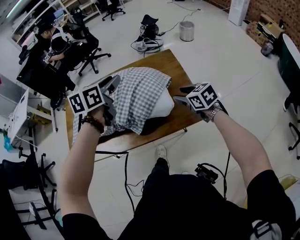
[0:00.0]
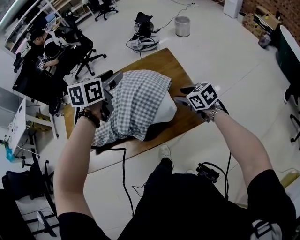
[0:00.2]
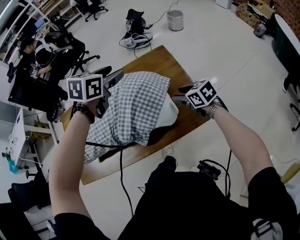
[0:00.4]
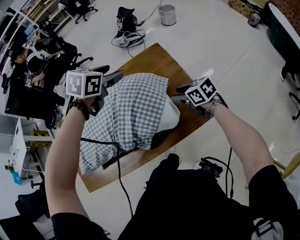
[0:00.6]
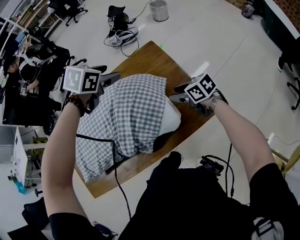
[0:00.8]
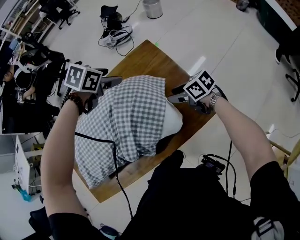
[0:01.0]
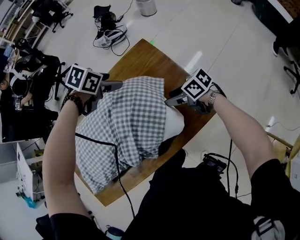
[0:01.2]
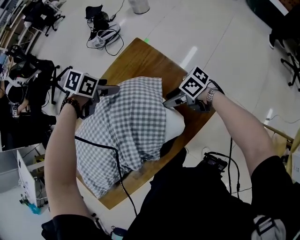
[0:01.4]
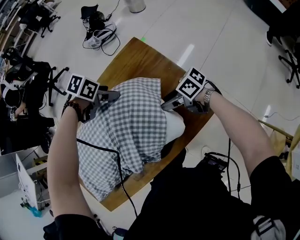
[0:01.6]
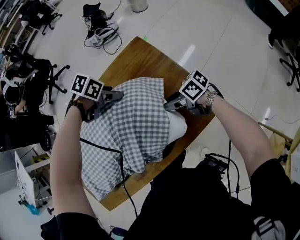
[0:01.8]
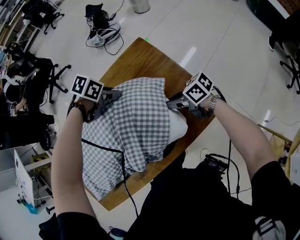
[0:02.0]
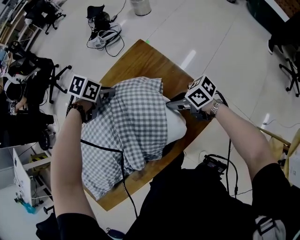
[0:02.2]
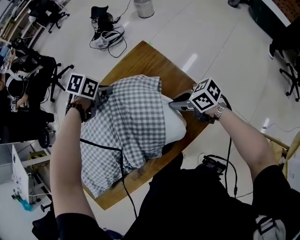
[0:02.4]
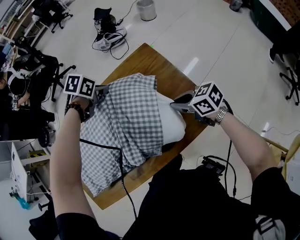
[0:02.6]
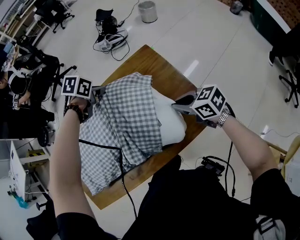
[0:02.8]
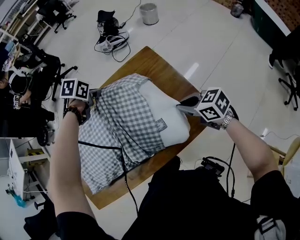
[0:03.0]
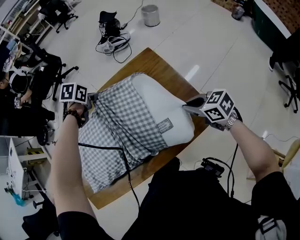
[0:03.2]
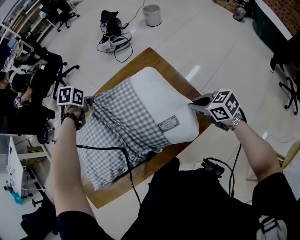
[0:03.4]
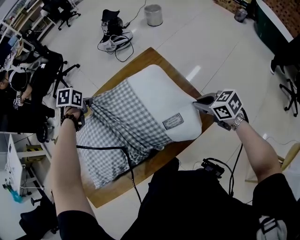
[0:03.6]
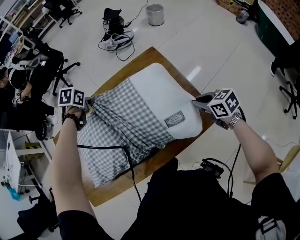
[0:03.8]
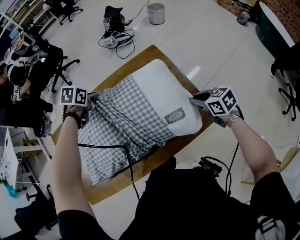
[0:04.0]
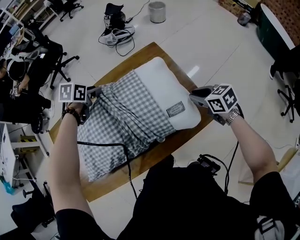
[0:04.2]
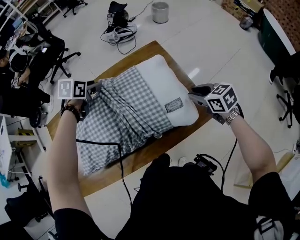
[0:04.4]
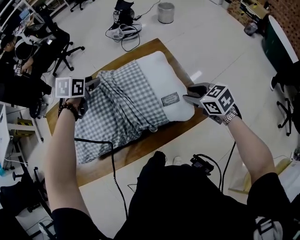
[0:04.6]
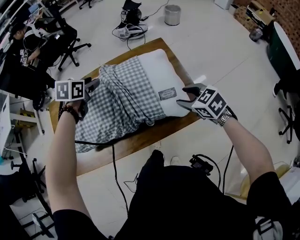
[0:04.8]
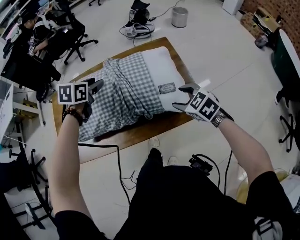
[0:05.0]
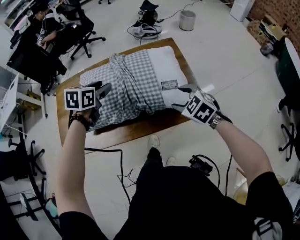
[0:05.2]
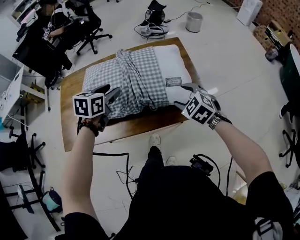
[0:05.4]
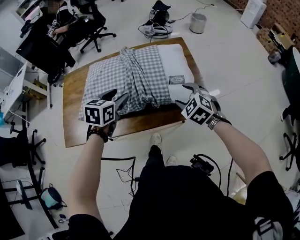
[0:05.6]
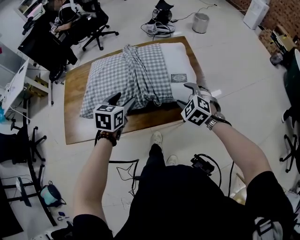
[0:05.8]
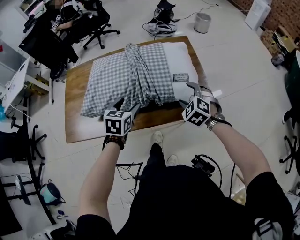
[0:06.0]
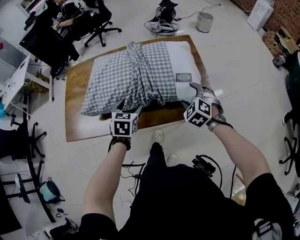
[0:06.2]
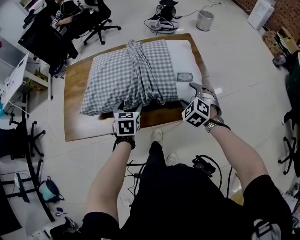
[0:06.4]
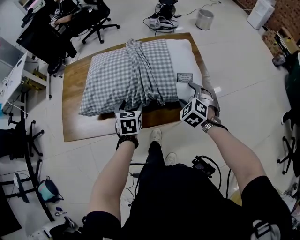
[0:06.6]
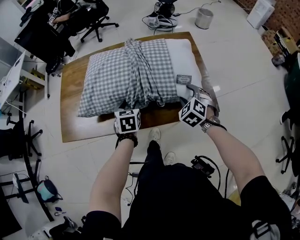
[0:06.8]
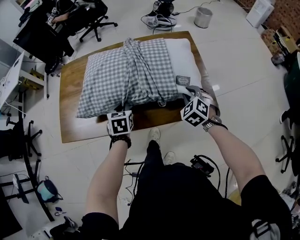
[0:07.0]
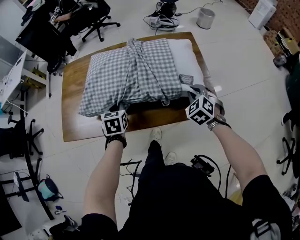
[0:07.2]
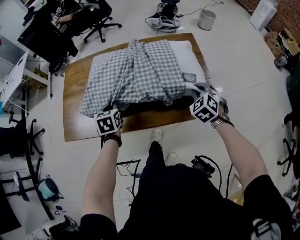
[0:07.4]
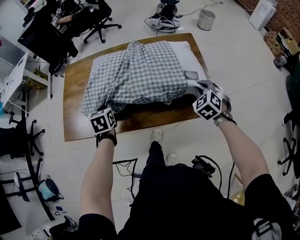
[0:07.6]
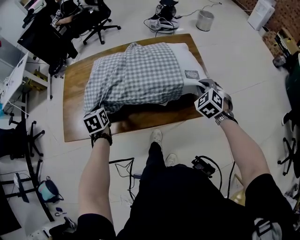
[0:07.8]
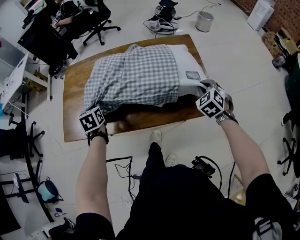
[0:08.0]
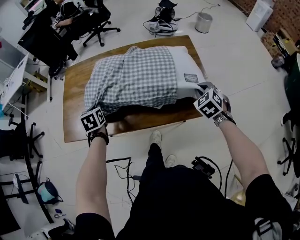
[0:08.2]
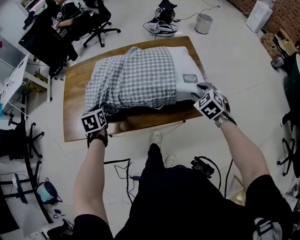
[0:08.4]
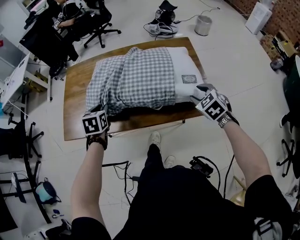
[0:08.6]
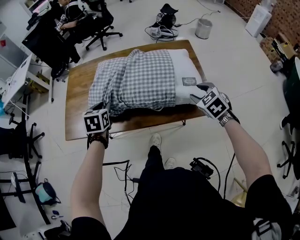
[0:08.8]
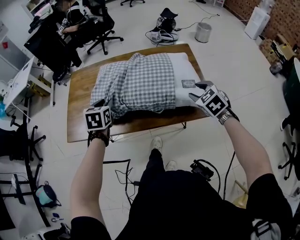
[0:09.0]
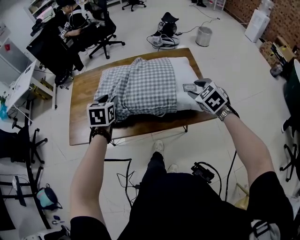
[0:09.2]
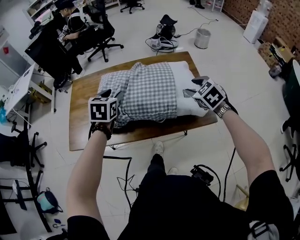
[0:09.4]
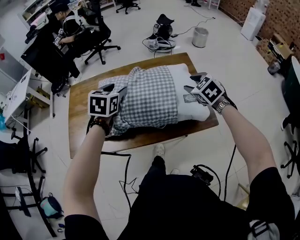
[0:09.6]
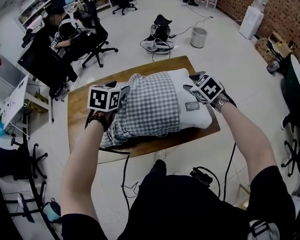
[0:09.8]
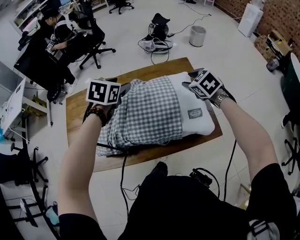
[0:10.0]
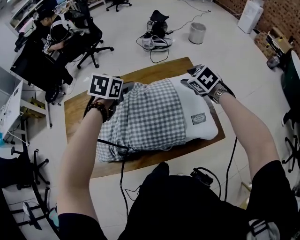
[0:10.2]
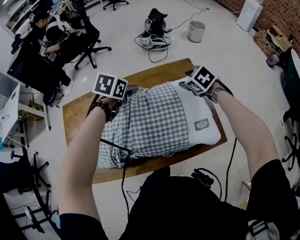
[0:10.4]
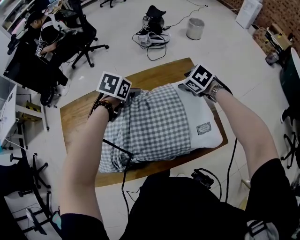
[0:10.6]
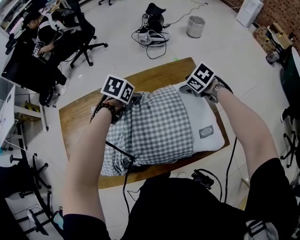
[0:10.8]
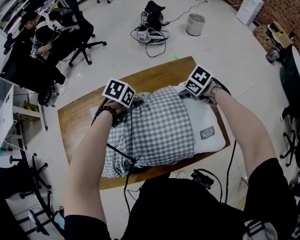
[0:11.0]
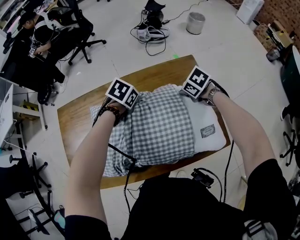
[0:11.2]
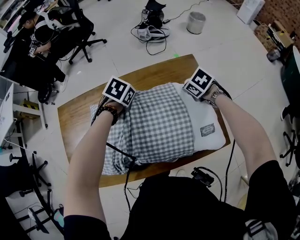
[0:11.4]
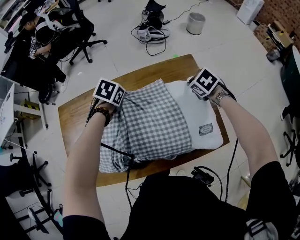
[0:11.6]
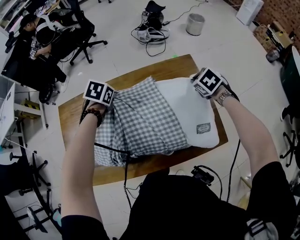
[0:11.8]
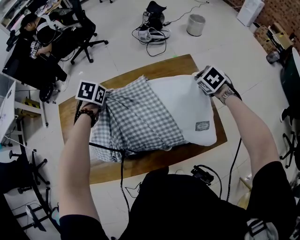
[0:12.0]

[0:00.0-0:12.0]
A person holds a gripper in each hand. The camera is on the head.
0:00.0 to 0:01.6: The right gripper shifts by some 25 cm, and rotates about 50 degrees. The left gripper ends up approximately 40 cm from where it was, angles its fingers downward, by approximately 40 degrees, and opens.
0:01.6 to 0:03.0: The right gripper is displaced upward by approximately 10 cm, changes its angle by approximately 30 degrees, and closes up, while the left gripper shifts by approximately 15 cm, swivels approximately 30 degrees, and closes.
0:03.0 to 0:04.4: The left gripper shifts by some 10 cm, and opens.
0:04.4 to 0:06.0: The right gripper travels backward, to the left and downward by about 15 cm, rolls counterclockwise, seen from behind, by about 50 degrees, and opens up, while the left gripper is displaced backward by approximately 30 cm, and turns by approximately 30 degrees.
0:06.0 to 0:07.6: The left gripper is displaced to the left by about 15 cm, rotates some 30 degrees, and closes up. Meanwhile the right gripper goes about 5 cm forward, and closes up.
0:07.6 to 0:09.0: The left gripper shifts approximately 10 cm backward and upward, and opens its fingers. Meanwhile the right gripper travels backward by about 10 cm, and opens up.
0:09.0 to 0:10.4: The right gripper moves forward, some 30 cm; the left gripper shifts about 30 cm forward and to the right, swivels roughly 40 degrees, and opens.
0:10.4 to 0:12.0: The left gripper ends up approximately 15 cm from where it was, and closes. Meanwhile the right gripper reaches roughly 10 cm downward, then returns, and closes.

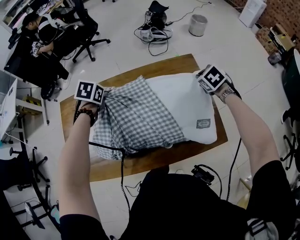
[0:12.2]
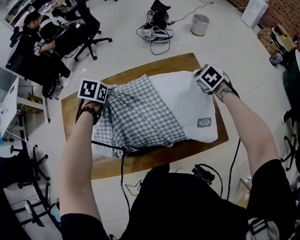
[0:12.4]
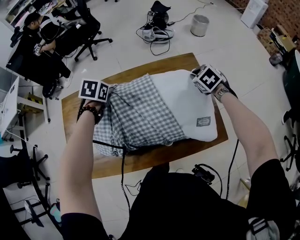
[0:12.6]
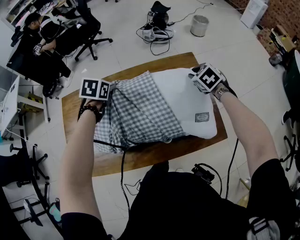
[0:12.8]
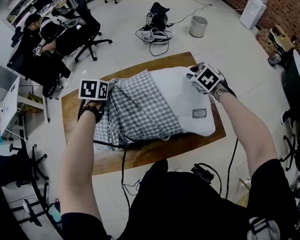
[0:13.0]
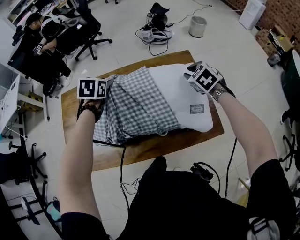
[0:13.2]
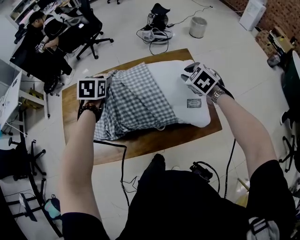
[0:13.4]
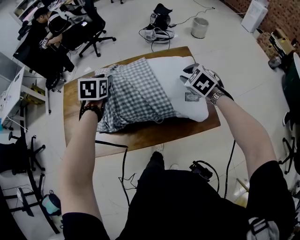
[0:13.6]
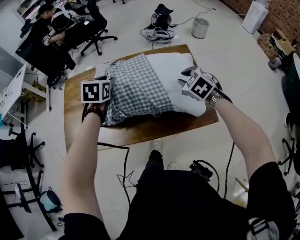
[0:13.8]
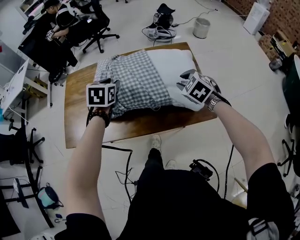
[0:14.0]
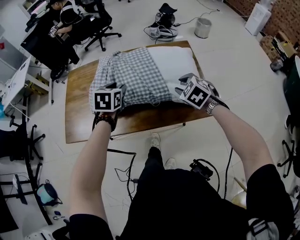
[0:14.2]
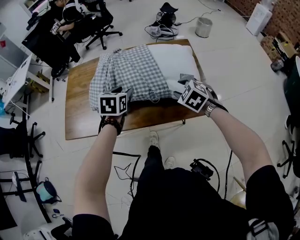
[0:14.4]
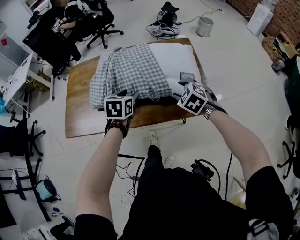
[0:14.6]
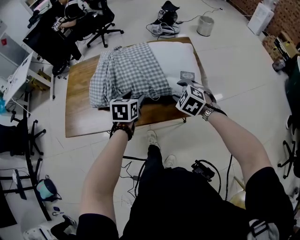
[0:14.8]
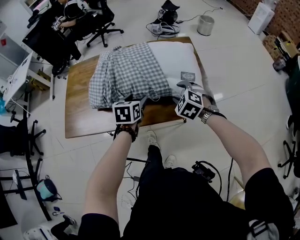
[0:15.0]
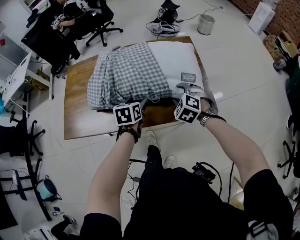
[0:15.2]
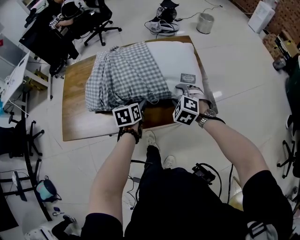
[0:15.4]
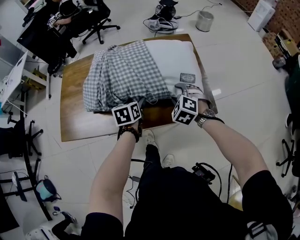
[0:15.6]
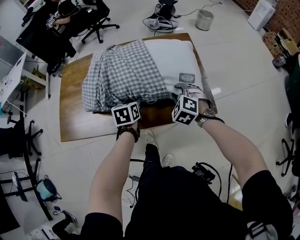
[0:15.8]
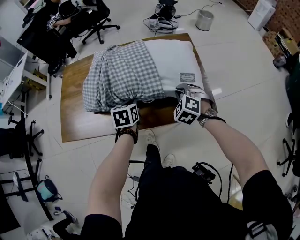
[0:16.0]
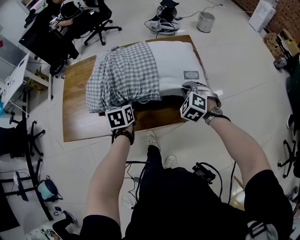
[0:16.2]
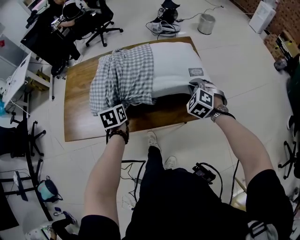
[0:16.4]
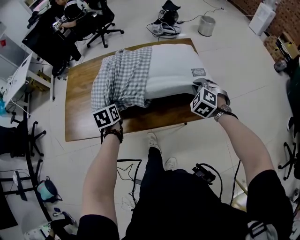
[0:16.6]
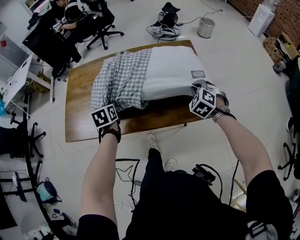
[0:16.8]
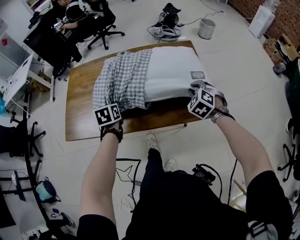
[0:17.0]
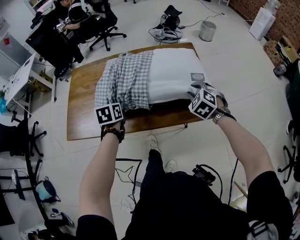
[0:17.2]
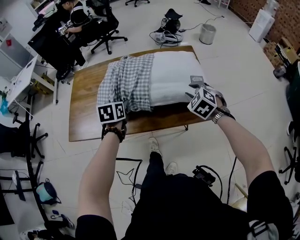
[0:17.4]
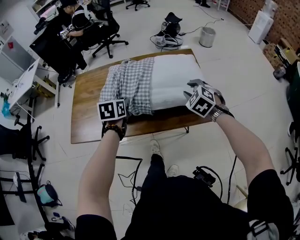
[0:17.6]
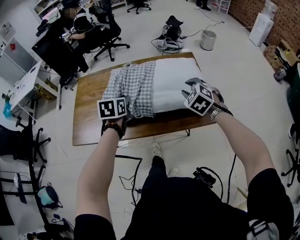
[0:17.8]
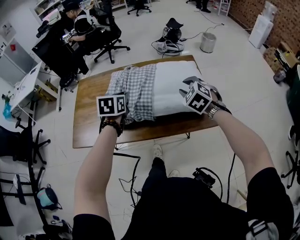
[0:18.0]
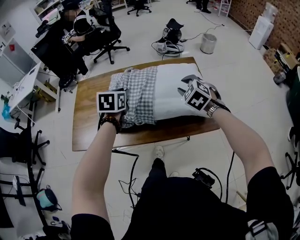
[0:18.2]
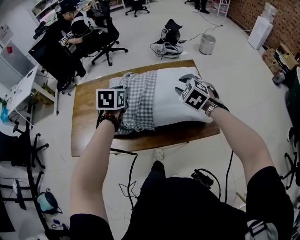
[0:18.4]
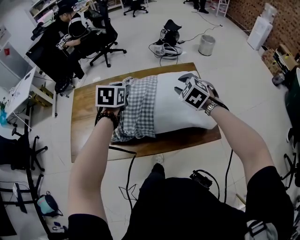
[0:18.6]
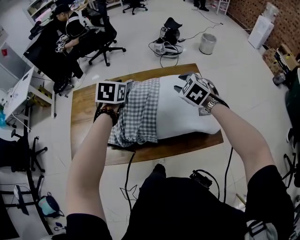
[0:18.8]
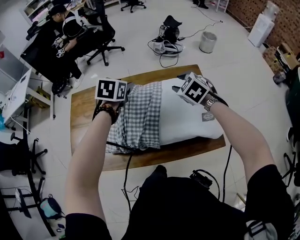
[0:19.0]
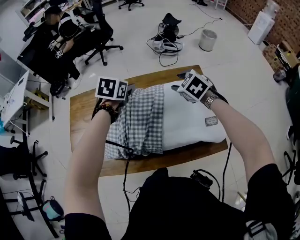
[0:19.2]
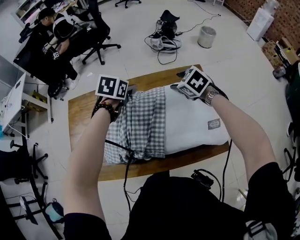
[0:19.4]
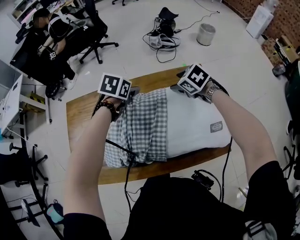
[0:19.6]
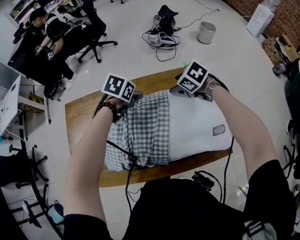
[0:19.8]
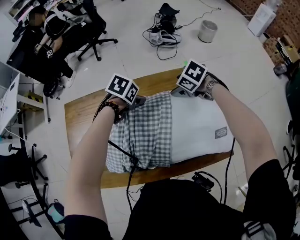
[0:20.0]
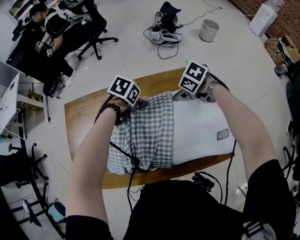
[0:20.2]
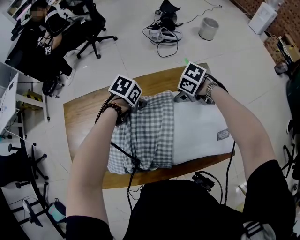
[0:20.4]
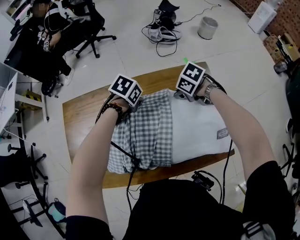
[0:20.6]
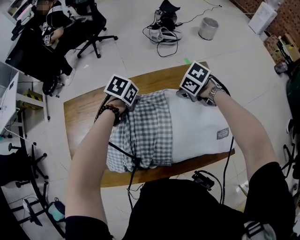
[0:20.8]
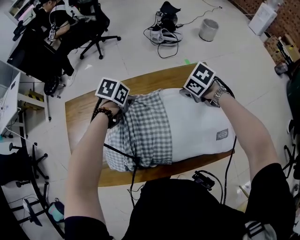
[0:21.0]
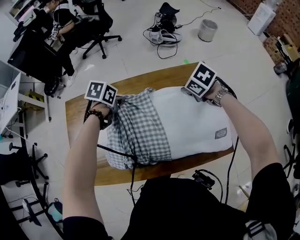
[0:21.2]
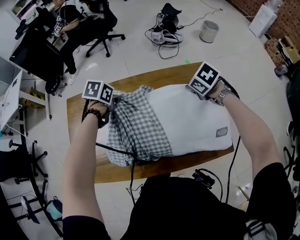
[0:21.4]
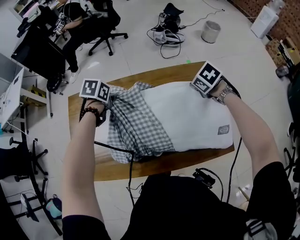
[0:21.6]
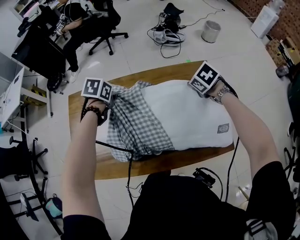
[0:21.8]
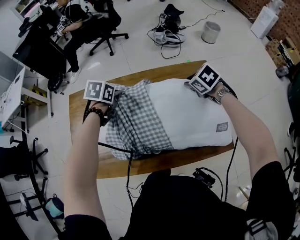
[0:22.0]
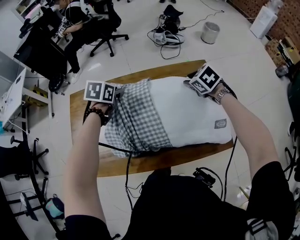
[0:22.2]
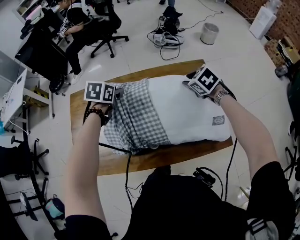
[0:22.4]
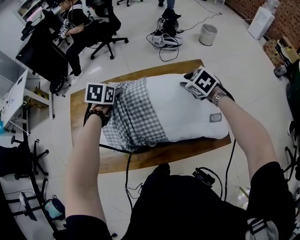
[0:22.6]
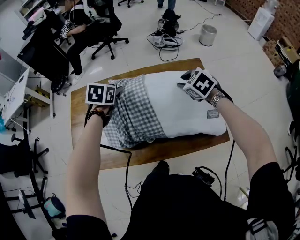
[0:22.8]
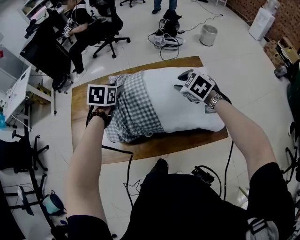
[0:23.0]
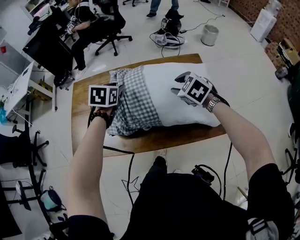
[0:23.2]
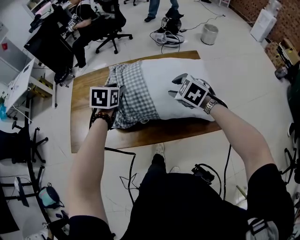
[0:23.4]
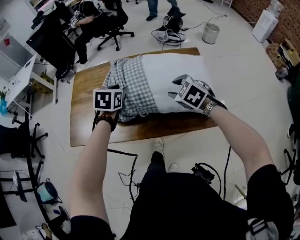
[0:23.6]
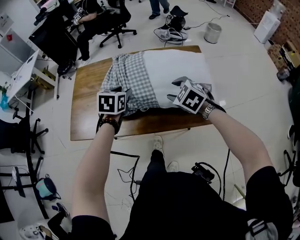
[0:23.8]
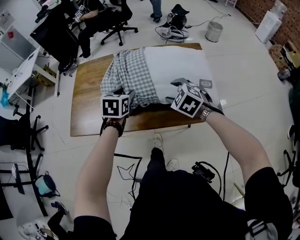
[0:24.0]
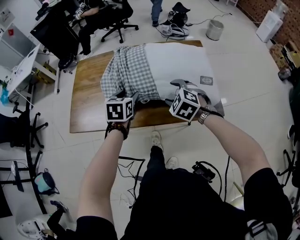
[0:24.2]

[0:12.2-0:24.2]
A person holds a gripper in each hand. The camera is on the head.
0:12.2 to 0:13.8: Both grippers travel together backward, approximately 20 cm. The right gripper changes its angle by approximately 20 degrees. Meanwhile the left gripper rotates roughly 30 degrees, and opens.
0:13.8 to 0:15.2: The left gripper shifts roughly 20 cm downward, backward and to the right, and opens its fingers. Meanwhile the right gripper goes approximately 15 cm downward and backward.
0:15.2 to 0:16.6: The right gripper shifts some 10 cm to the right, and closes. Meanwhile the left gripper travels to the left by about 10 cm, and closes up.
0:16.6 to 0:18.2: The right gripper is displaced upward and to the left by roughly 10 cm, and opens its fingers. Meanwhile the left gripper shifts about 15 cm upward and to the right, and turns by approximately 20 degrees.
0:18.2 to 0:19.8: The two grippers go about 30 cm forward. The left gripper rotates approximately 40 degrees, and opens, while the right gripper changes its angle by approximately 40 degrees, and opens its fingers.
0:19.8 to 0:21.2: The right gripper closes its fingers. Meanwhile the left gripper changes place by about 5 cm, and closes.
0:21.2 to 0:22.6: The right gripper moves some 10 cm, rotates approximately 20 degrees, and opens its fingers, while the left gripper moves some 10 cm, swivels about 20 degrees, and opens.
0:22.6 to 0:24.2: The right gripper goes some 25 cm backward and to the left, turns by roughly 30 degrees, and opens up, while the left gripper heads backward, covering some 25 cm.
